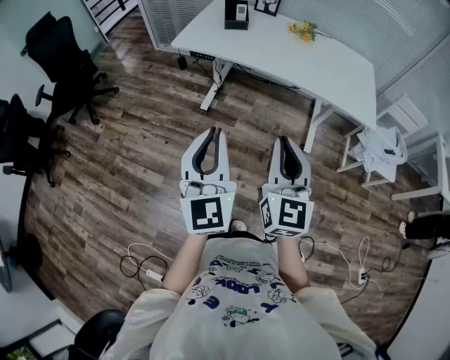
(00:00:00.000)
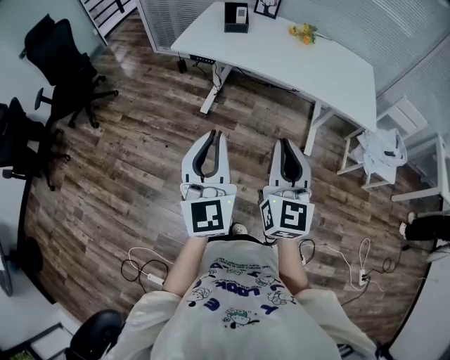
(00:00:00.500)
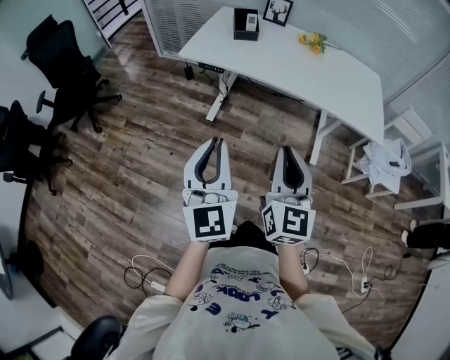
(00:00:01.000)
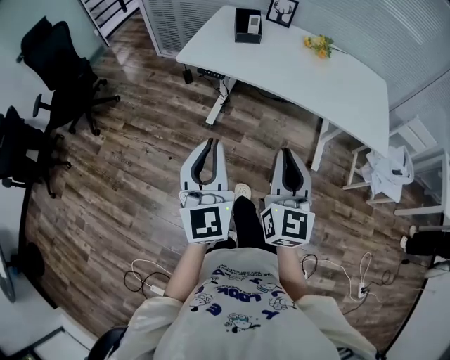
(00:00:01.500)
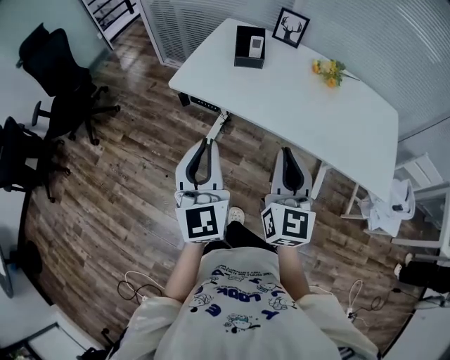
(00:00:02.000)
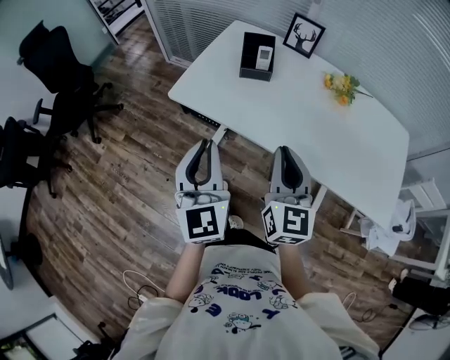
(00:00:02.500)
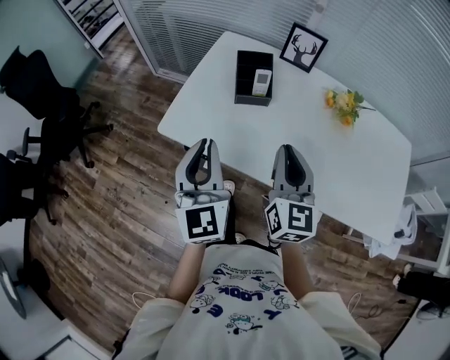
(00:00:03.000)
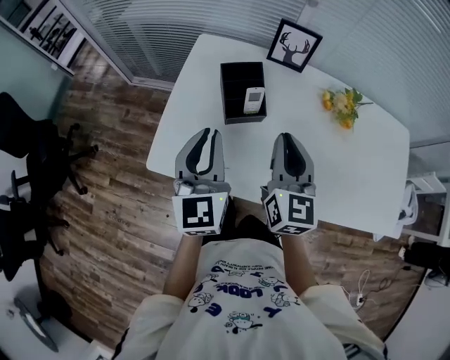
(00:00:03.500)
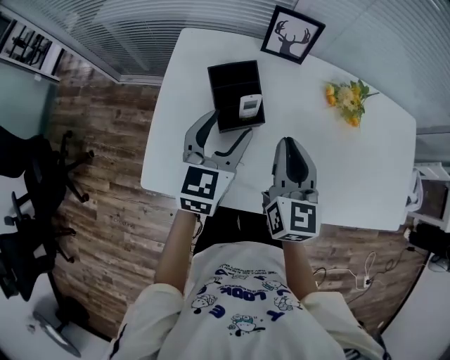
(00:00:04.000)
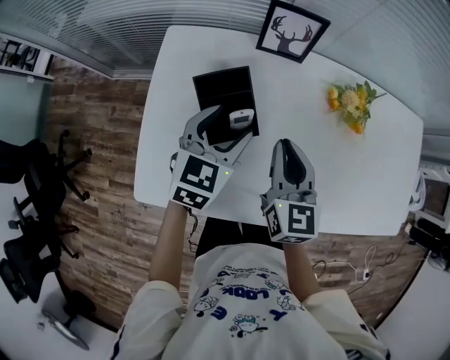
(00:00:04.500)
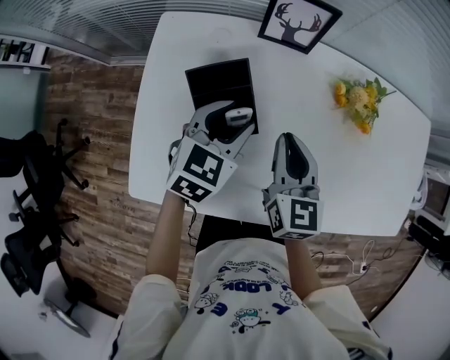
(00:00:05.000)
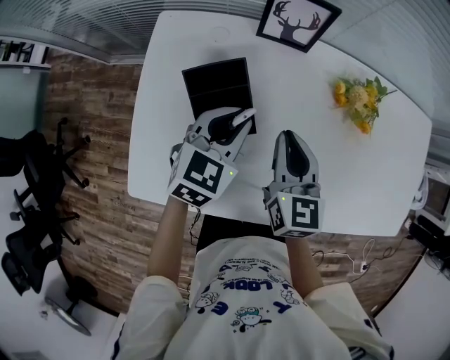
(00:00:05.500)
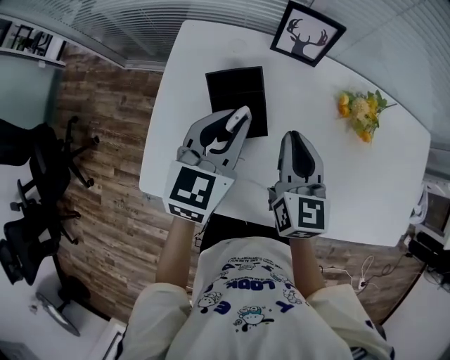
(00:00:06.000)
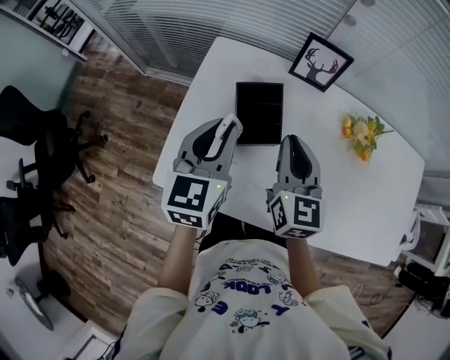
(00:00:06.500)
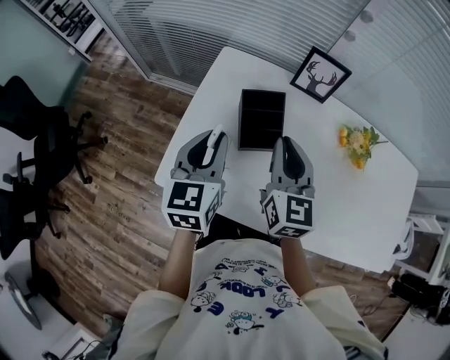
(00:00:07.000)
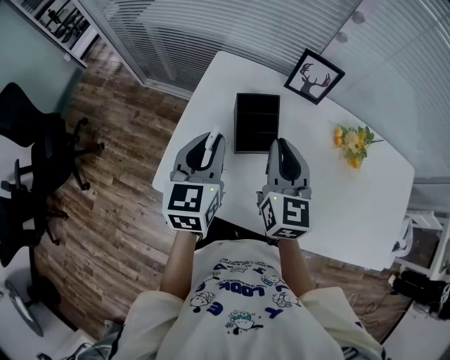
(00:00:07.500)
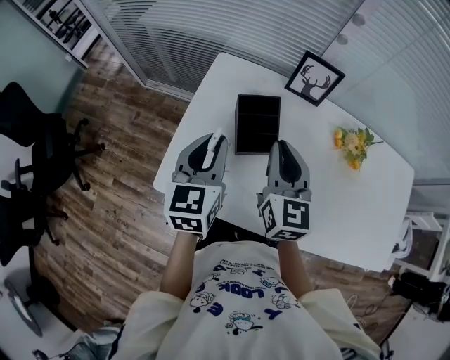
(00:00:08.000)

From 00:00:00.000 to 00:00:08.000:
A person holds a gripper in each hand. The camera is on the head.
From 00:00:00.000 to 00:00:02.000: The grippers both shift forward by about 30 cm.
From 00:00:02.000 to 00:00:04.000: Both grippers are carried about 50 cm. The left gripper rotates about 40 degrees, and opens.
From 00:00:04.000 to 00:00:06.000: Both grippers travel together forward, about 5 cm. The left gripper goes downward and returns, about 5 cm each way, and closes up.
From 00:00:06.000 to 00:00:08.000: The left gripper travels to the left and backward by approximately 15 cm, and changes its angle by roughly 20 degrees. Meanwhile the right gripper is displaced to the left and upward by about 10 cm.

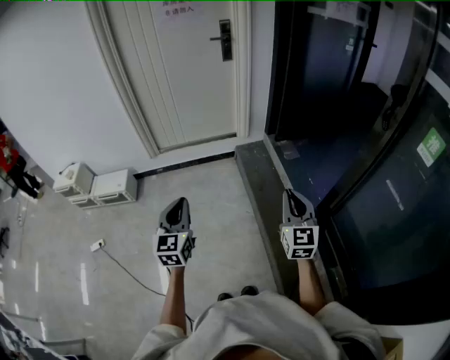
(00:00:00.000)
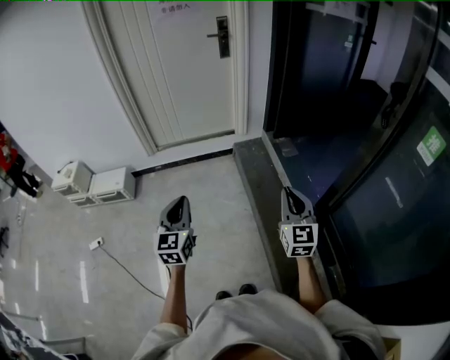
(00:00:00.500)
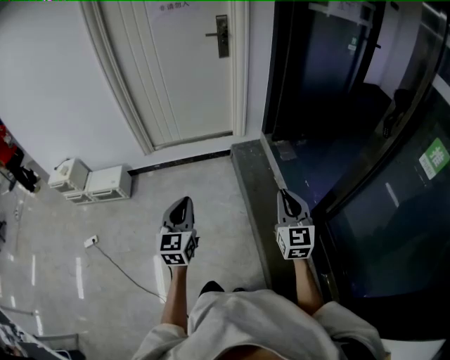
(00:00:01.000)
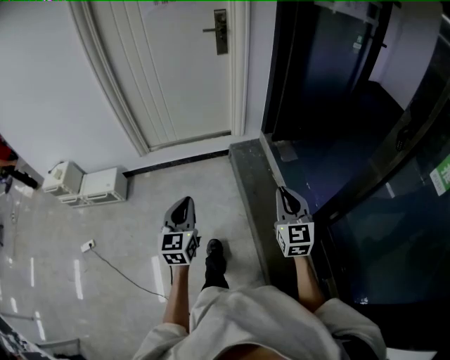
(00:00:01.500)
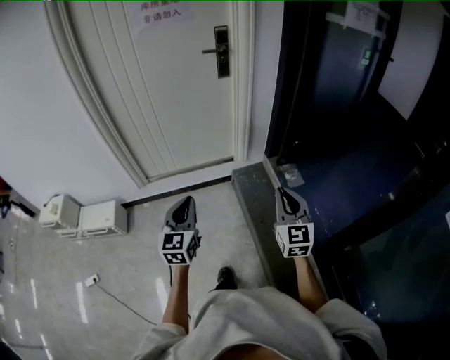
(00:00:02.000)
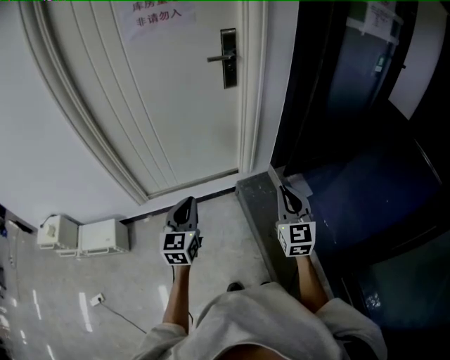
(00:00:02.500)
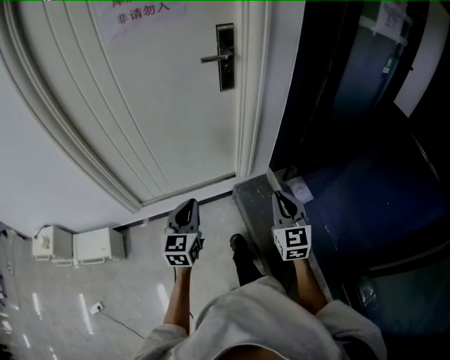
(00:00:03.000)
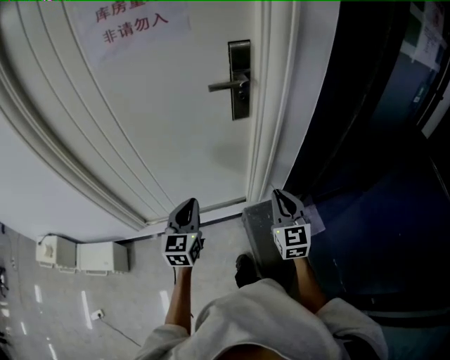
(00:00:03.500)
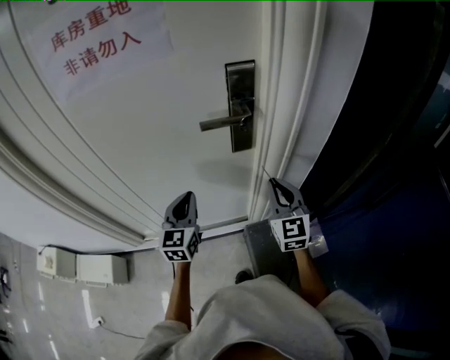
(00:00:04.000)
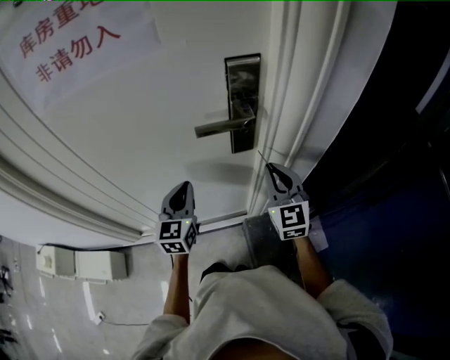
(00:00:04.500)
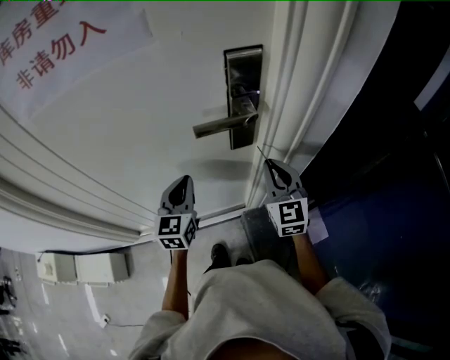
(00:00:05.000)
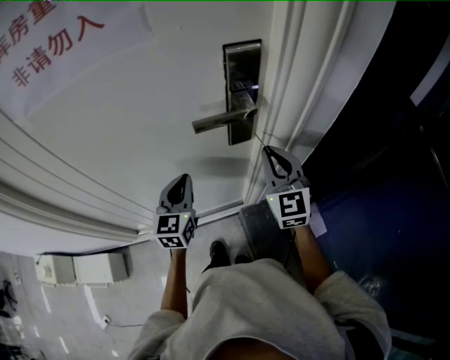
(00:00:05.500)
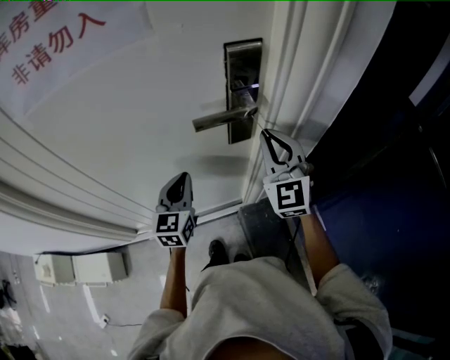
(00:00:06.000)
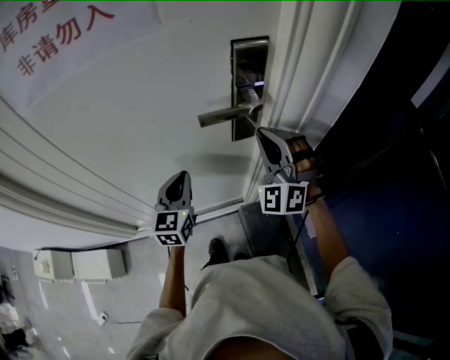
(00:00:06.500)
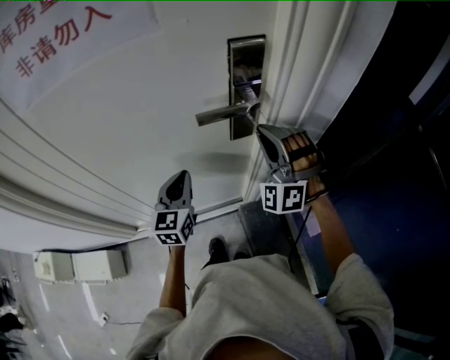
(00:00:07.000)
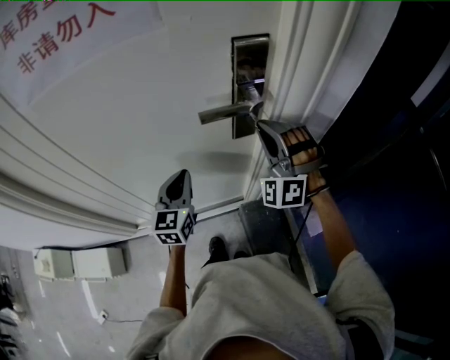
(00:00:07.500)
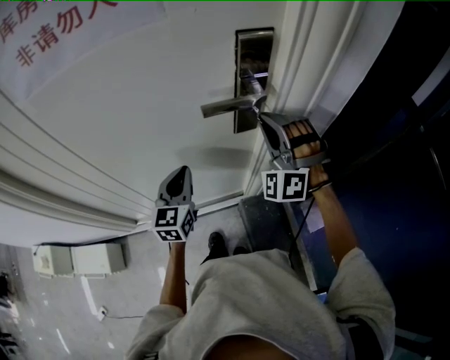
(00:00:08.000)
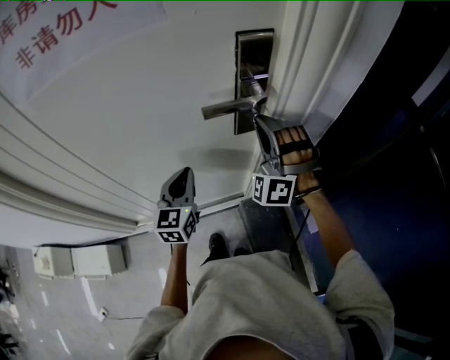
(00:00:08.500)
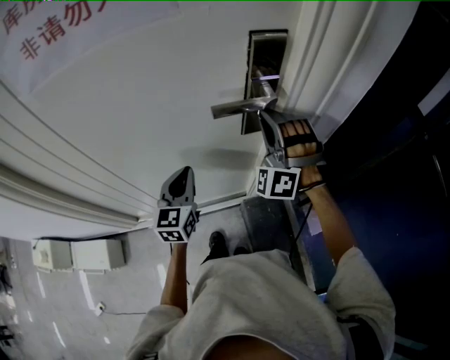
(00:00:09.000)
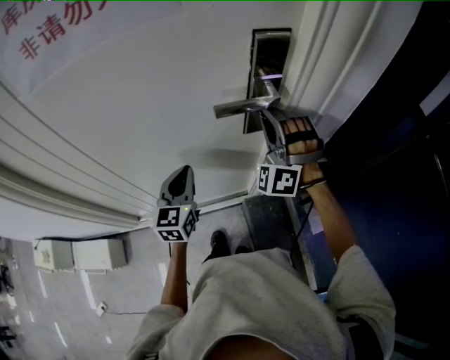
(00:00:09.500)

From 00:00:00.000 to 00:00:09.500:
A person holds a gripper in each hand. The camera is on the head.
From 00:00:00.000 to 00:00:02.000: Both grippers move forward, some 35 cm.
From 00:00:02.000 to 00:00:04.000: The pair of grippers is taken forward, some 70 cm.
From 00:00:04.000 to 00:00:05.500: Both grippers move forward, roughly 10 cm.
From 00:00:05.500 to 00:00:07.500: The right gripper changes place by about 5 cm, and twists some 70 degrees counterclockwise, seen from behind.
From 00:00:07.500 to 00:00:09.500: The grippers stay close to where they were, moving slightly.

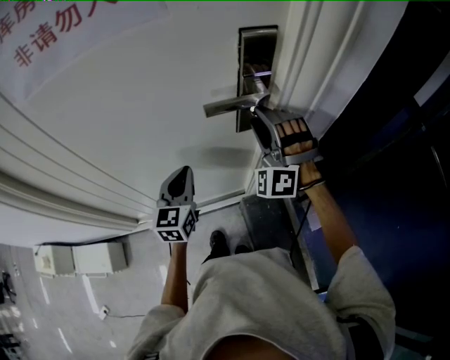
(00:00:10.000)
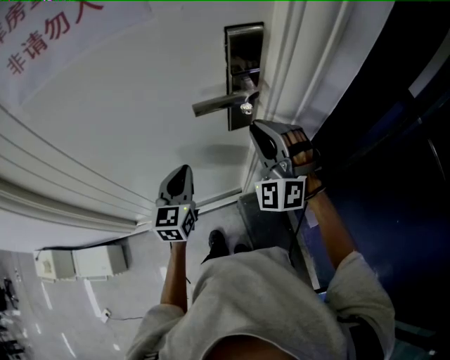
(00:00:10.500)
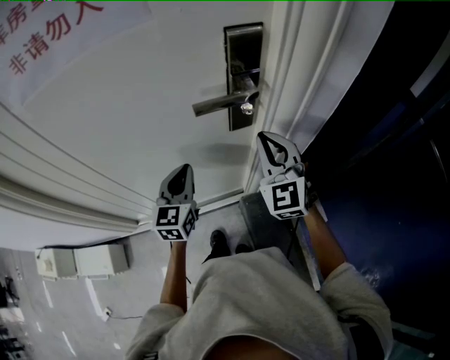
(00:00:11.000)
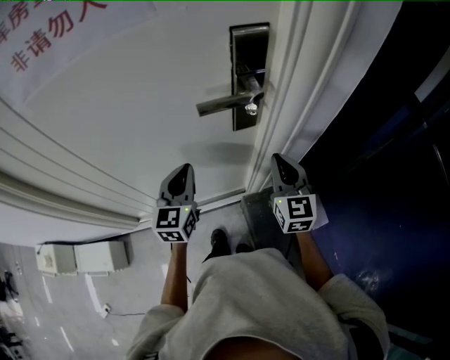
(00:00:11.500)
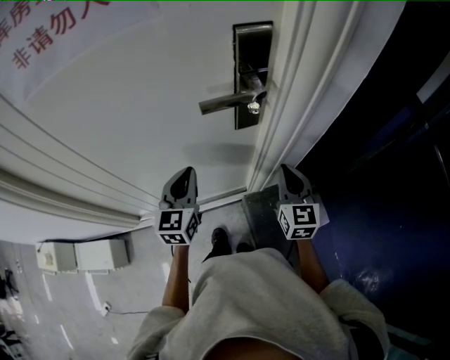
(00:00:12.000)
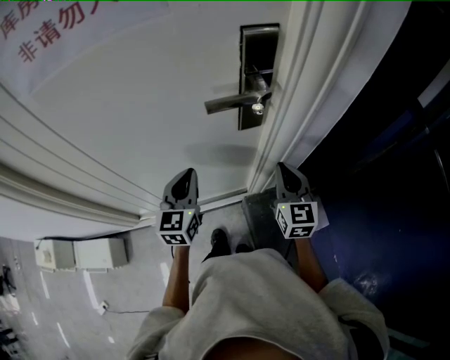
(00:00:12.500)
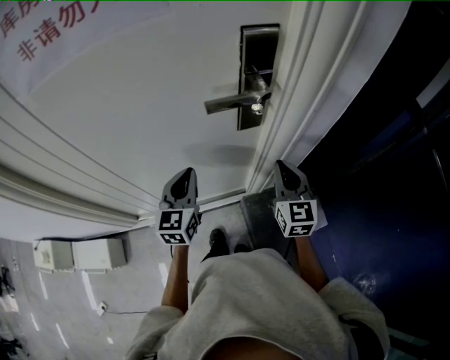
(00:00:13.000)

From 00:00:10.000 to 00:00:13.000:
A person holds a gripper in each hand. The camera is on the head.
From 00:00:10.000 to 00:00:11.500: The right gripper shifts some 10 cm to the right, backward and downward, twists approximately 80 degrees clockwise, seen from behind, and closes.
From 00:00:11.500 to 00:00:13.000: The grippers stay close to where they were, moving slightly.

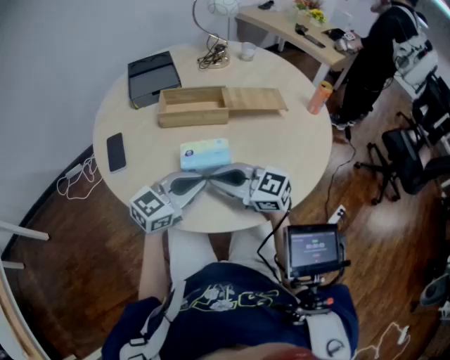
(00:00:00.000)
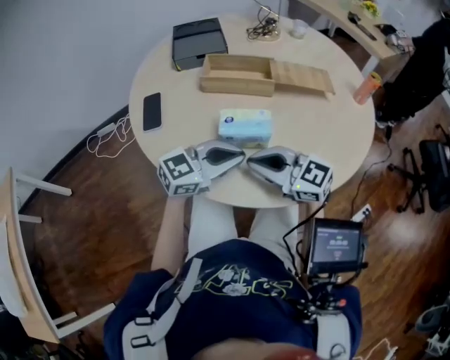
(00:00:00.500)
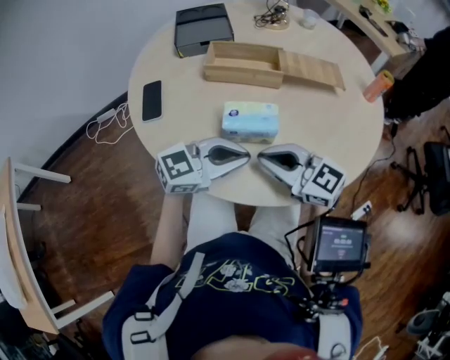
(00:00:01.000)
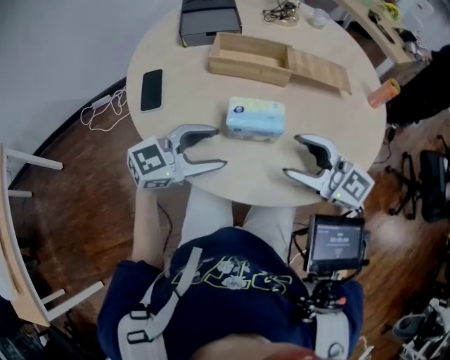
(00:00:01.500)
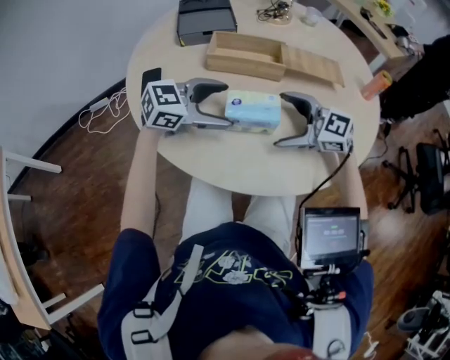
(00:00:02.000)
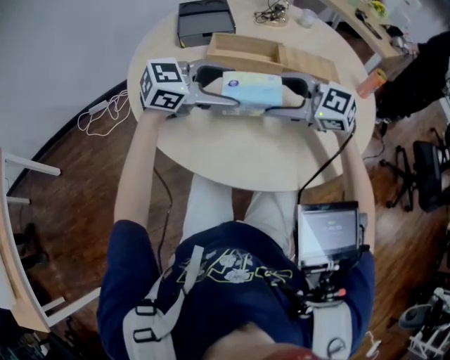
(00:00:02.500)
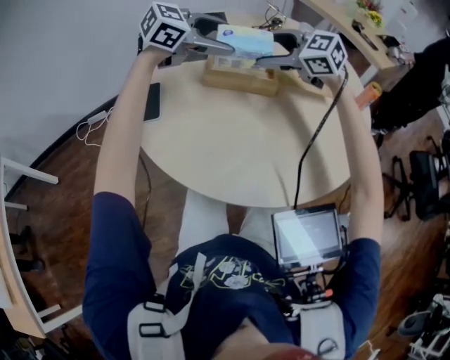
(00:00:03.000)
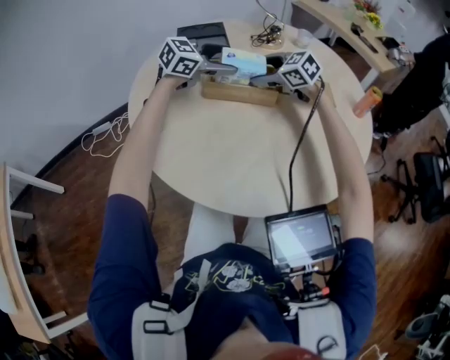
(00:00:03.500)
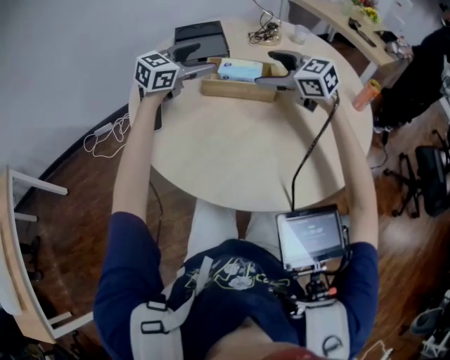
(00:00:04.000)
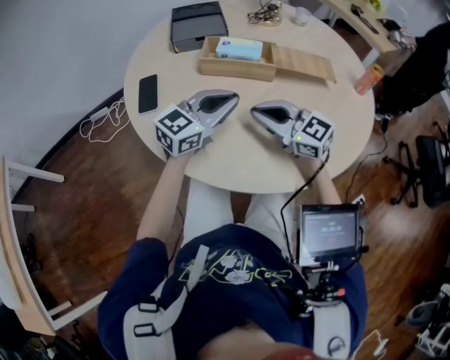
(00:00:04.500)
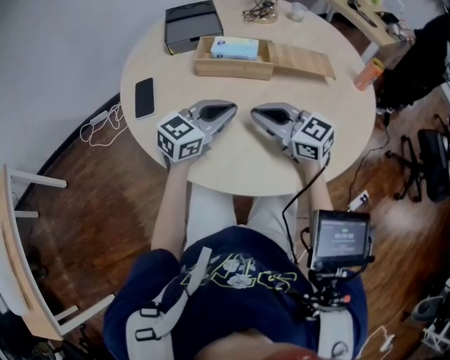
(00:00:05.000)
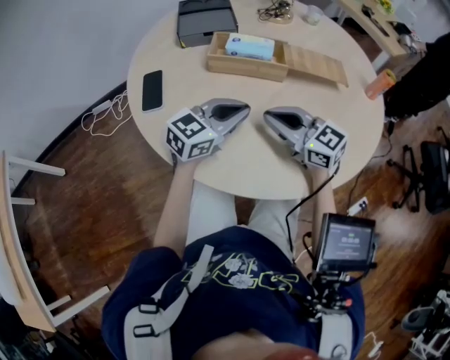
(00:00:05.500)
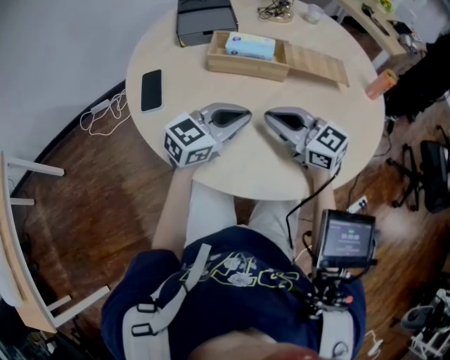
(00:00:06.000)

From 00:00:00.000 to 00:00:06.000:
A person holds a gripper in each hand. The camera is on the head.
From 00:00:00.000 to 00:00:02.000: The right gripper shifts by about 10 cm, and opens its fingers. The left gripper ends up approximately 10 cm from where it was, and opens up.
From 00:00:02.000 to 00:00:04.000: The right gripper moves up and down over about 15 cm, changing direction 2 times. Meanwhile the left gripper shifts by roughly 20 cm, and swivels approximately 30 degrees.
From 00:00:04.000 to 00:00:06.000: The grippers both shift backward and downward by about 20 cm. The left gripper closes. The right gripper closes its fingers.
